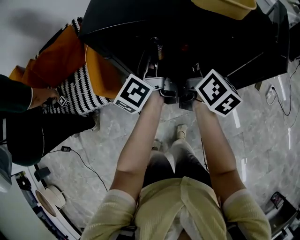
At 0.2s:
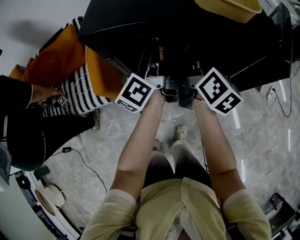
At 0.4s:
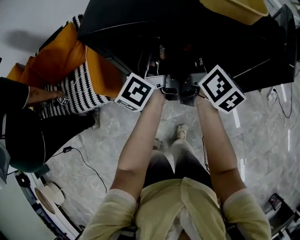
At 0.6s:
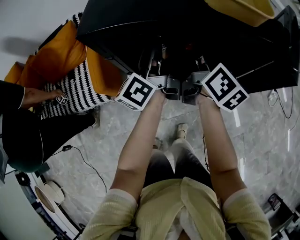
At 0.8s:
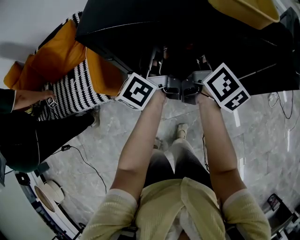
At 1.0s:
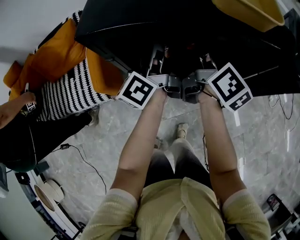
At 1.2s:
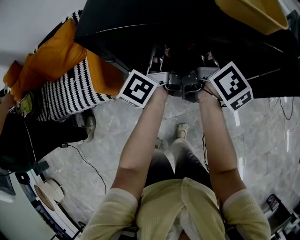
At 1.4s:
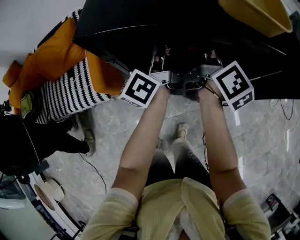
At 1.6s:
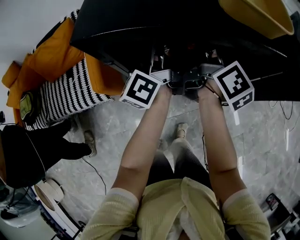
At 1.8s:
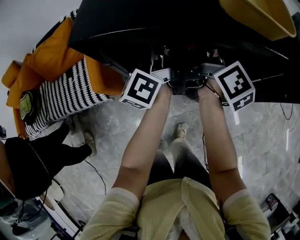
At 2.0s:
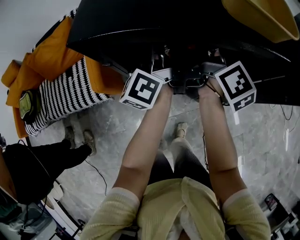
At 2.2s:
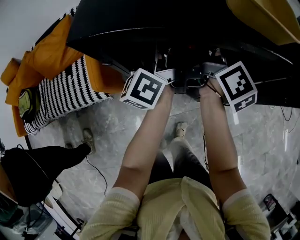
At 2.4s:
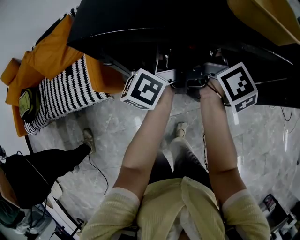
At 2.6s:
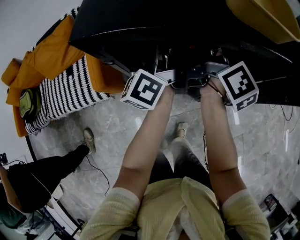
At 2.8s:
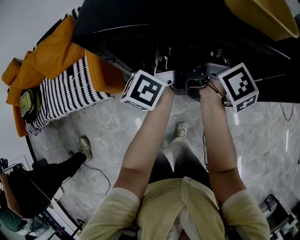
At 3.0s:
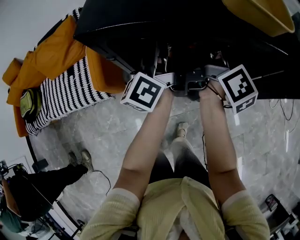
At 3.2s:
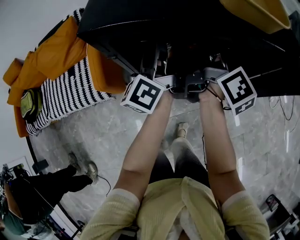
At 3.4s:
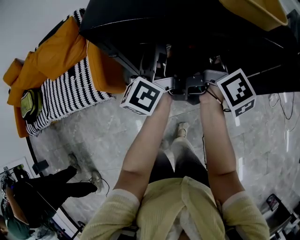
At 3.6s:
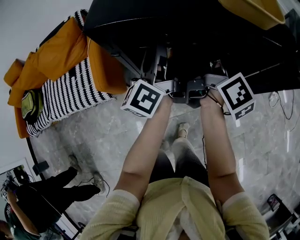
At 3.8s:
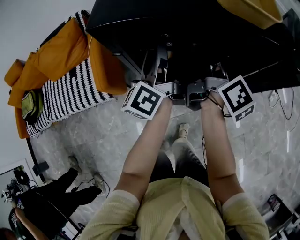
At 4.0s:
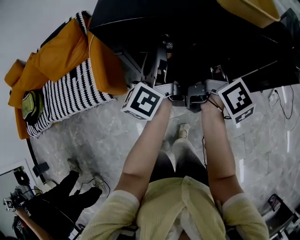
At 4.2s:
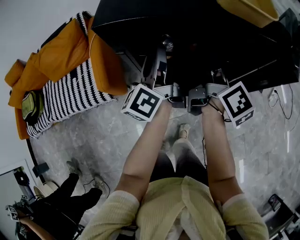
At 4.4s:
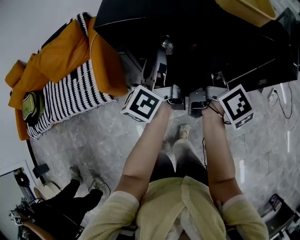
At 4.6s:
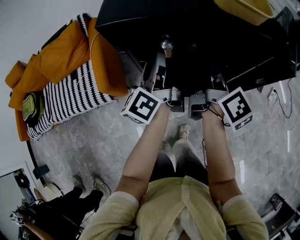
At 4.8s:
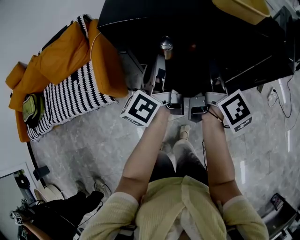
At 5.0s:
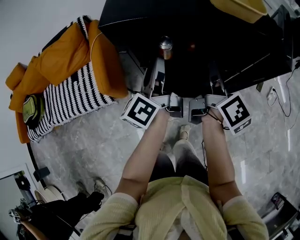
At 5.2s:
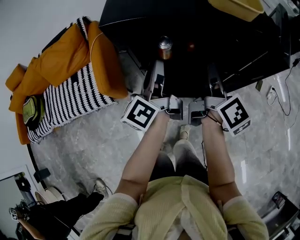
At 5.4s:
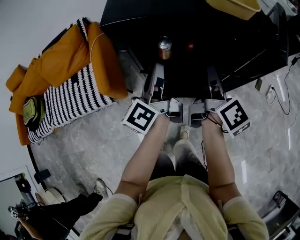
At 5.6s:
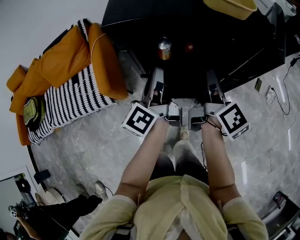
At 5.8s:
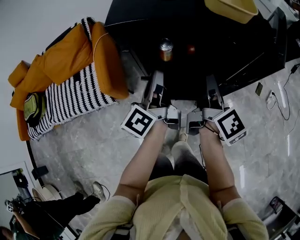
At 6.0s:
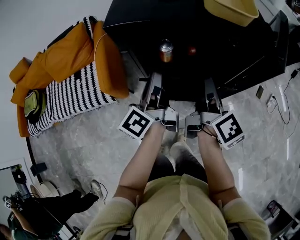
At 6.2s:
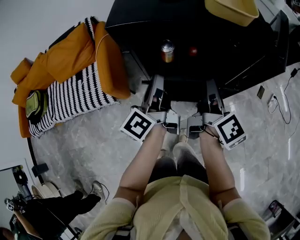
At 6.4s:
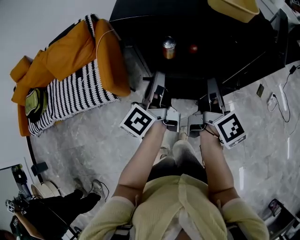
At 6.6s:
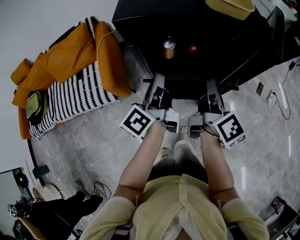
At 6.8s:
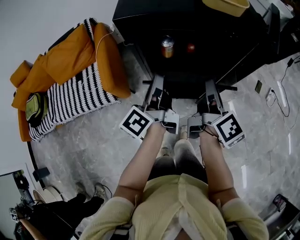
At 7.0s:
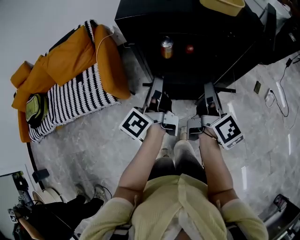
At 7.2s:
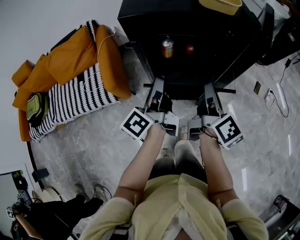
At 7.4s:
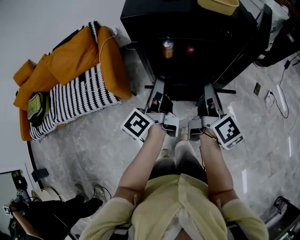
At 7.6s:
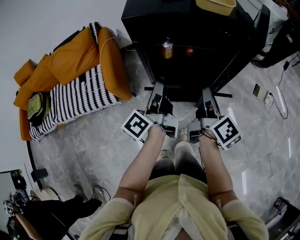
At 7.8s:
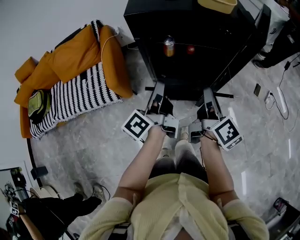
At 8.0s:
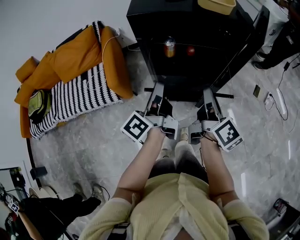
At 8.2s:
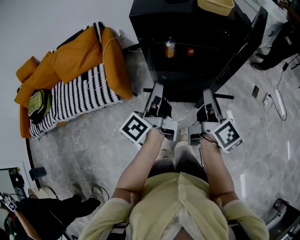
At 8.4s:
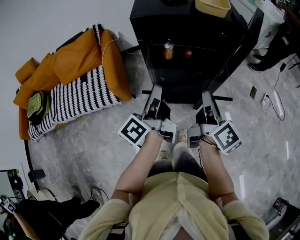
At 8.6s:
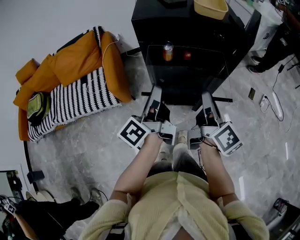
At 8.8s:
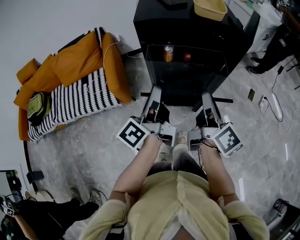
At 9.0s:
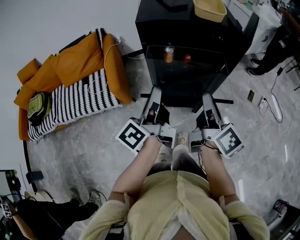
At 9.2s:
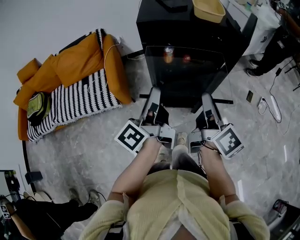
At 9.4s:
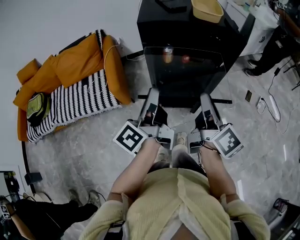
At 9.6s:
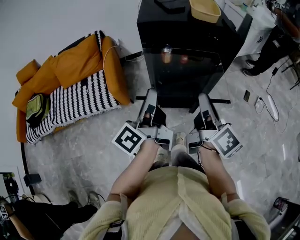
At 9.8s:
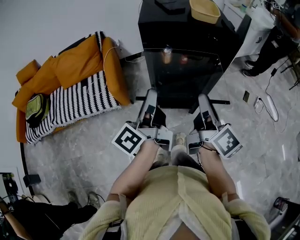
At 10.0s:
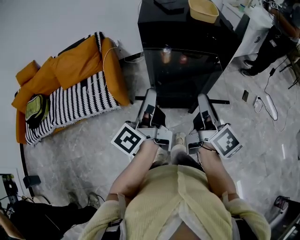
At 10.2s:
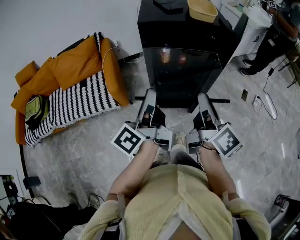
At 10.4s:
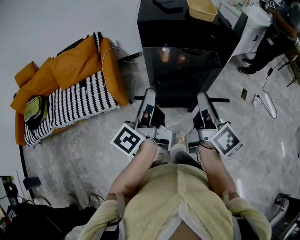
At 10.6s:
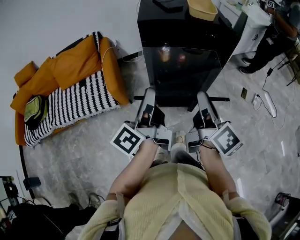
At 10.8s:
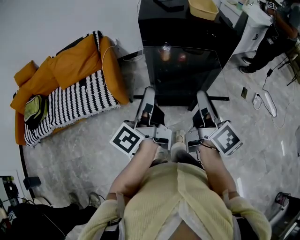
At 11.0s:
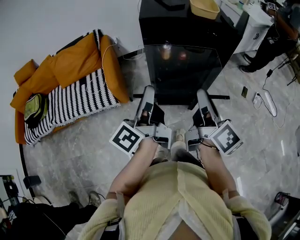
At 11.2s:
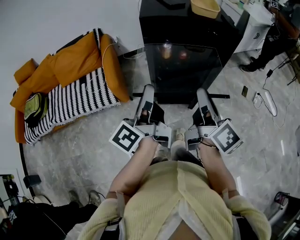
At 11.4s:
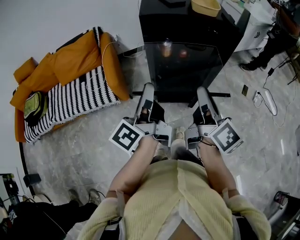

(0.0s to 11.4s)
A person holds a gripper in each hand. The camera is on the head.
0.0s - 1.4s: Both grippers move forward, roughly 5 cm. The right gripper opens. The left gripper opens.
1.4s - 2.8s: The grippers make only small movements.
2.8s - 4.2s: Both grippers move backward, approximately 5 cm.
4.2s - 5.6s: The grippers both shift backward by approximately 10 cm.
5.6s - 7.2s: The grippers both shift backward by about 5 cm.
7.2s - 8.6s: Both grippers travel together backward, approximately 10 cm.
8.6s - 10.0s: The right gripper is displaced backward by roughly 5 cm. Meanwhile the left gripper heads backward and upward, covering roughly 10 cm.
10.0s - 11.4s: There are only small adjustments of the grippers.

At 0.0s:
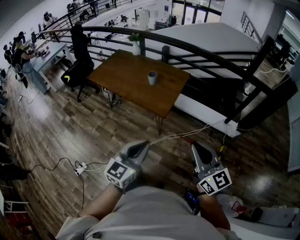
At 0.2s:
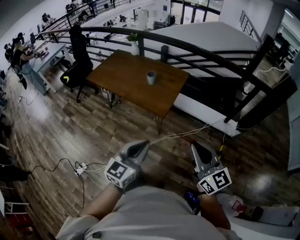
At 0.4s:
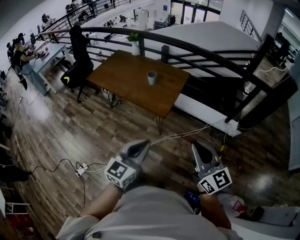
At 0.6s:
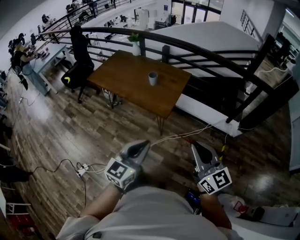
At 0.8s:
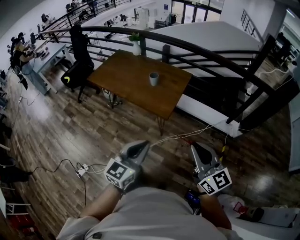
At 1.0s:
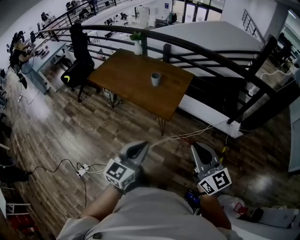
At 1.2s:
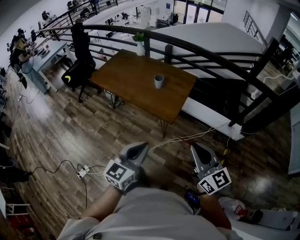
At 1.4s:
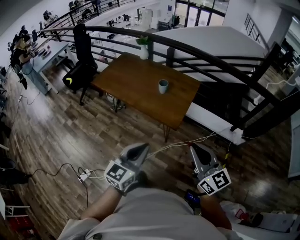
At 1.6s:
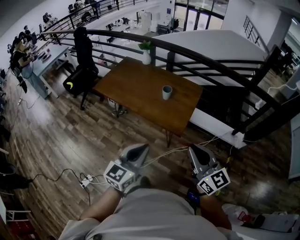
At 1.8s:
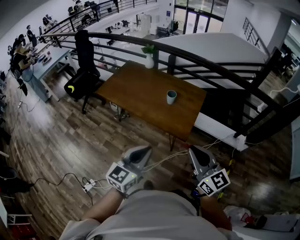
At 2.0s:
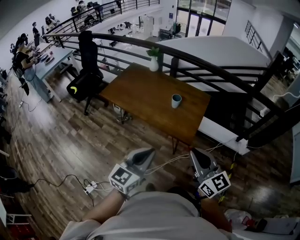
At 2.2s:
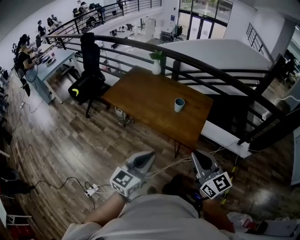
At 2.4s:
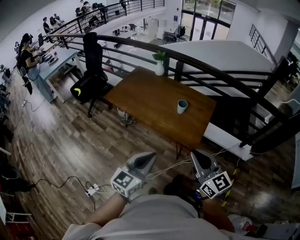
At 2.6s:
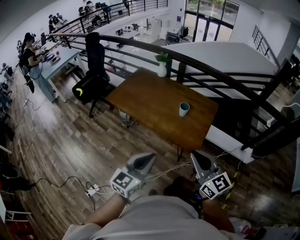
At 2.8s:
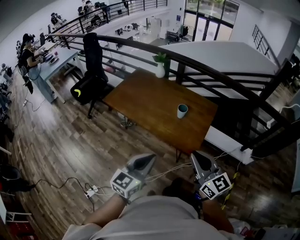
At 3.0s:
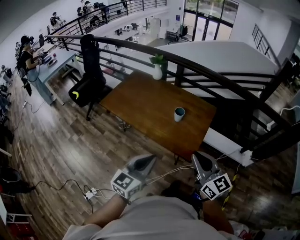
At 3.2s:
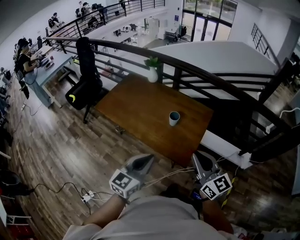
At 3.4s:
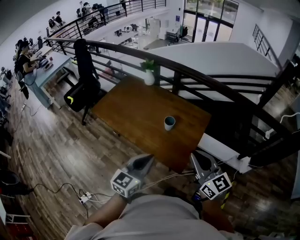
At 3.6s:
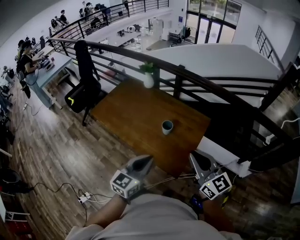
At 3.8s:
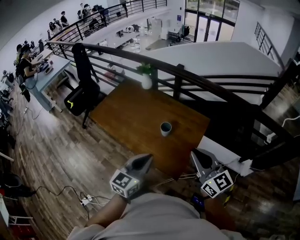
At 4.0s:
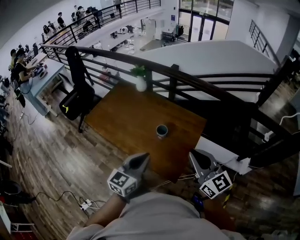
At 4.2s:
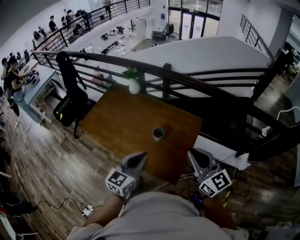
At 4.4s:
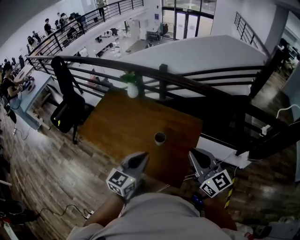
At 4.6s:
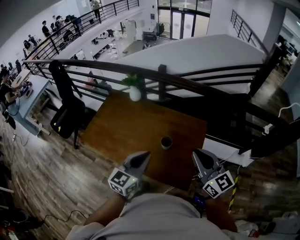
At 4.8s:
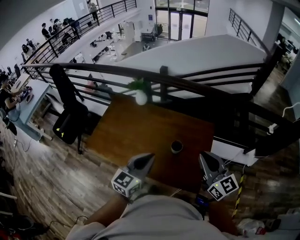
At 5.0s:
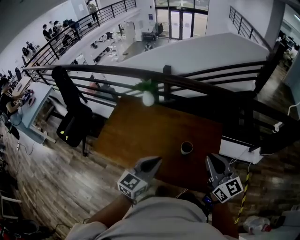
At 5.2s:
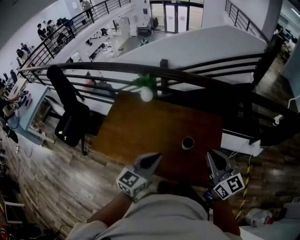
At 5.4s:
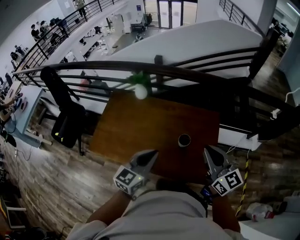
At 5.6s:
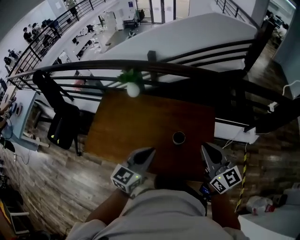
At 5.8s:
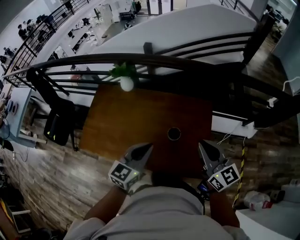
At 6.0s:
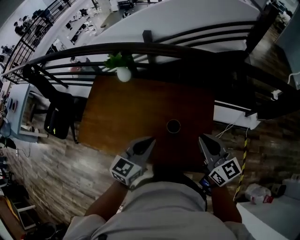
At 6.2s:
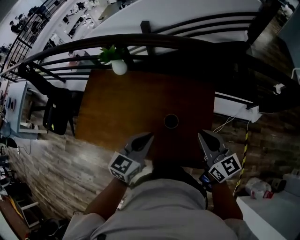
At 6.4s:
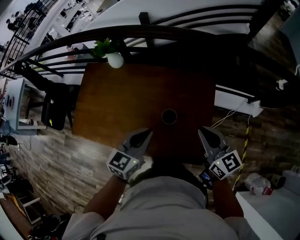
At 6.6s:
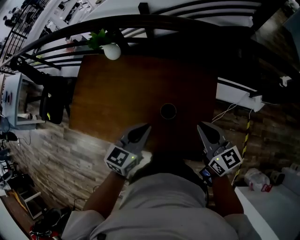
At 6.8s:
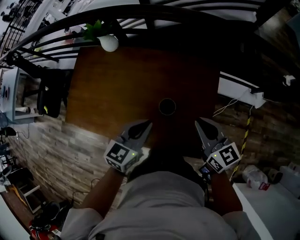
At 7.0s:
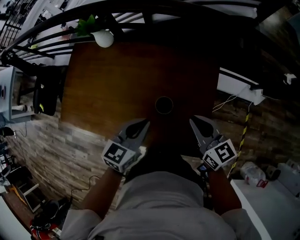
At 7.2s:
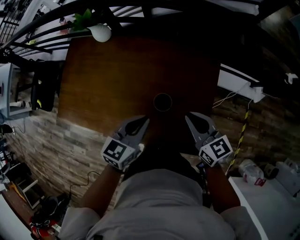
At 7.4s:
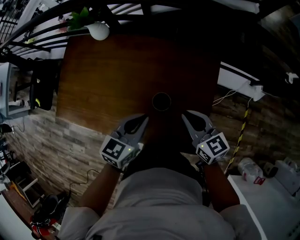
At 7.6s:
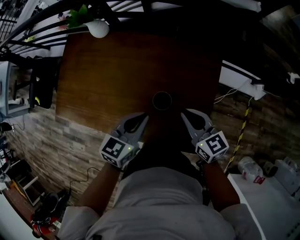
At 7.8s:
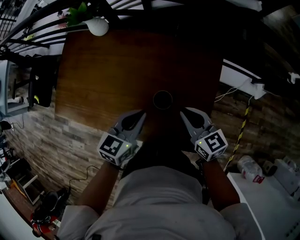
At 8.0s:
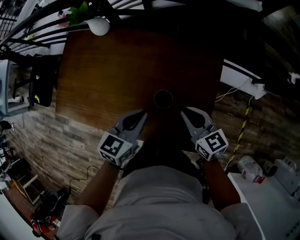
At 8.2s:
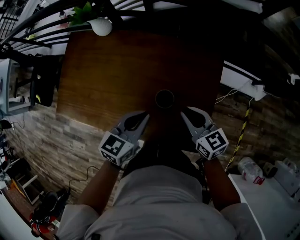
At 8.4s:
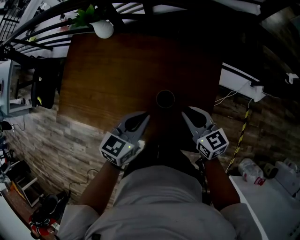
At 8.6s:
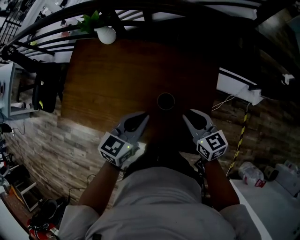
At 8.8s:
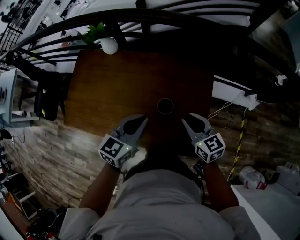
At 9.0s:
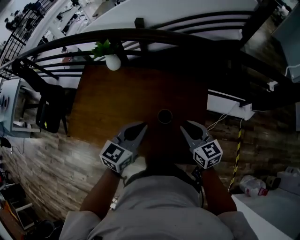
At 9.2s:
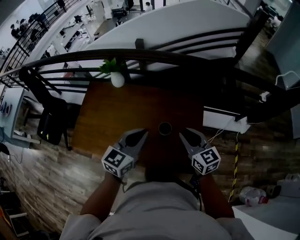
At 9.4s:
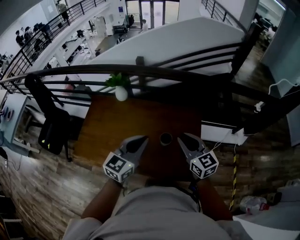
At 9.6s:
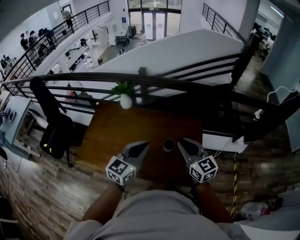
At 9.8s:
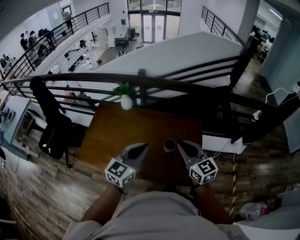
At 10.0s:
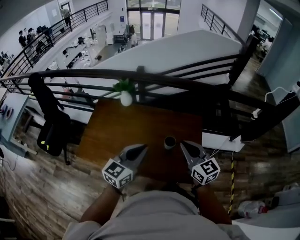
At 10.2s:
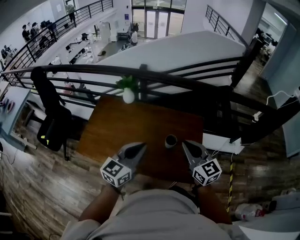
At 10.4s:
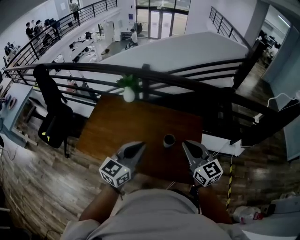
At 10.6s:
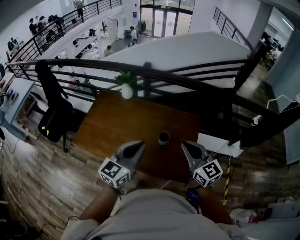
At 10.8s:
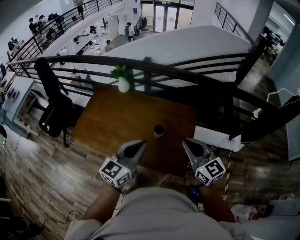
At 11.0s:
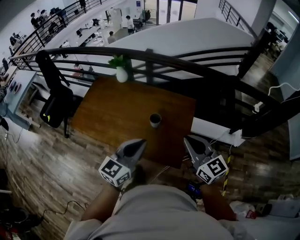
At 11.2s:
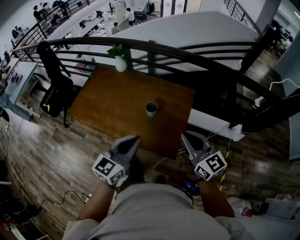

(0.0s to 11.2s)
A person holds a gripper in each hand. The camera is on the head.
0.0s - 1.6s: Both grippers travel together to the left and forward, approximately 25 cm.
1.6s - 3.2s: The two grippers go some 20 cm forward.
3.2s - 4.8s: Both grippers travel together forward, some 30 cm.
4.8s - 6.4s: The two grippers go approximately 20 cm downward and forward.
6.4s - 8.0s: The right gripper moves downward, some 20 cm; the left gripper heads downward and forward, covering some 15 cm.
8.0s - 9.6s: The two grippers go approximately 30 cm upward and backward. The right gripper swivels some 30 degrees. Meanwhile the left gripper rotates approximately 30 degrees.
9.6s - 11.2s: The left gripper moves backward and to the right, some 25 cm. The right gripper goes about 25 cm to the right and backward.

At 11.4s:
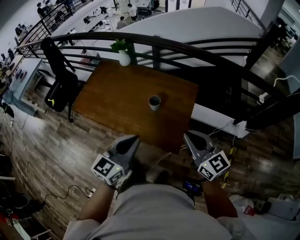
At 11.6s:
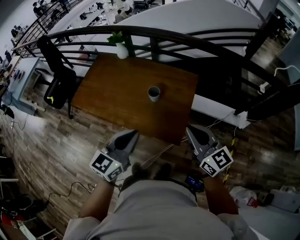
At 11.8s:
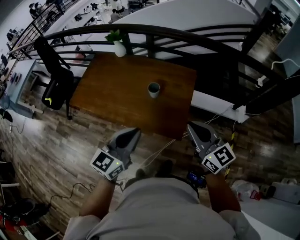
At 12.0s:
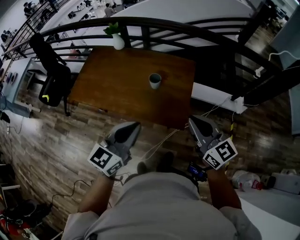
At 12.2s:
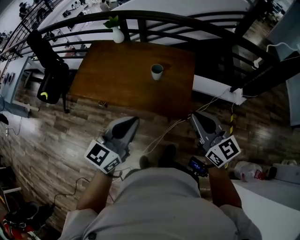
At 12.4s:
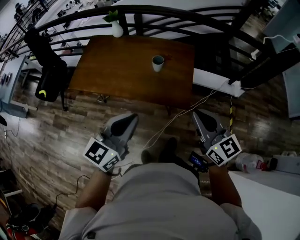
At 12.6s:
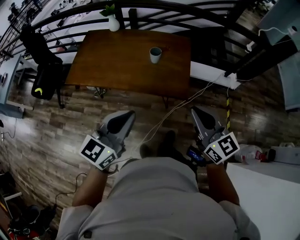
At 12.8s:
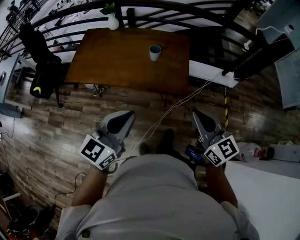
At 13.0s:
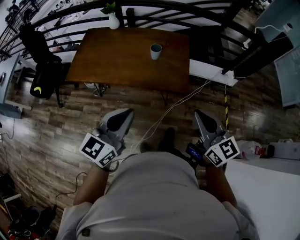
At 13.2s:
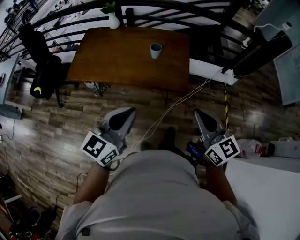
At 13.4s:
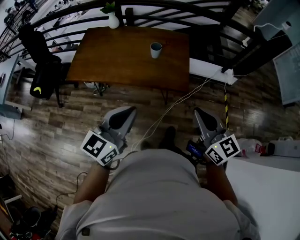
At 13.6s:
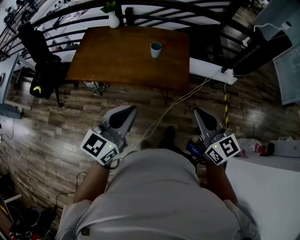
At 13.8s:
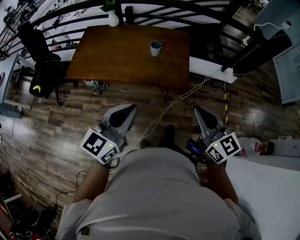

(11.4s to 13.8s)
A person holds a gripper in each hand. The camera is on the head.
11.4s - 12.6s: Both grippers move backward and to the left, roughly 25 cm.
12.6s - 13.8s: The right gripper heads backward, covering about 5 cm.
